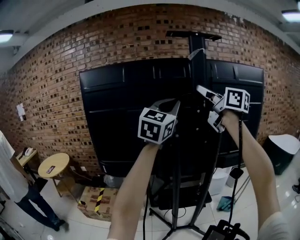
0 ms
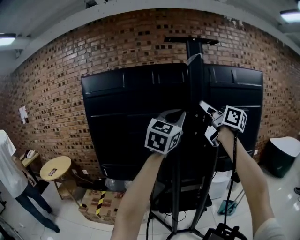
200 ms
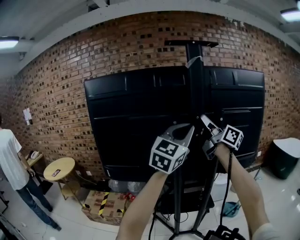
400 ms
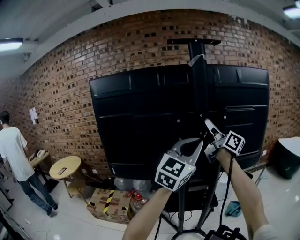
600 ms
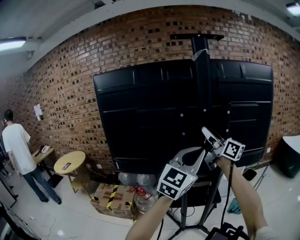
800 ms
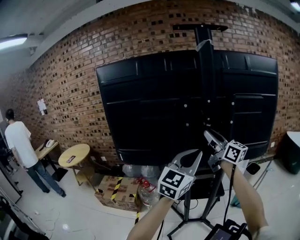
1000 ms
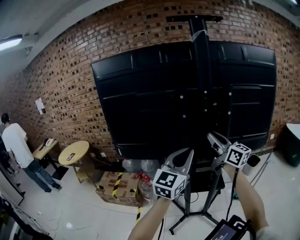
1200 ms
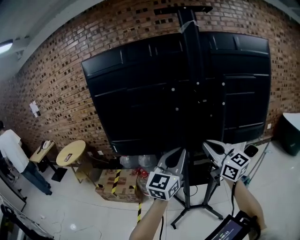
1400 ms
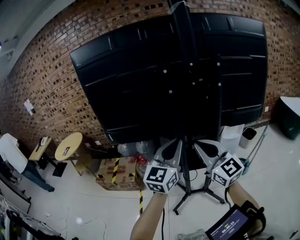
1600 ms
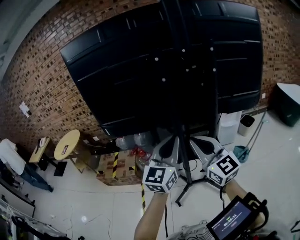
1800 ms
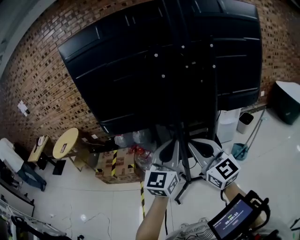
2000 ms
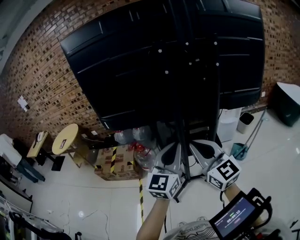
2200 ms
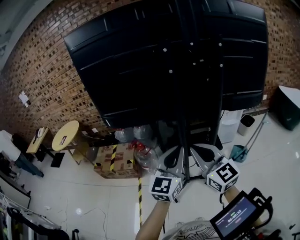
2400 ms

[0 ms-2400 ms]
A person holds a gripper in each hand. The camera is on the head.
0 ms to 1200 ms: The right gripper heads downward, covering approximately 25 cm, while the left gripper goes approximately 25 cm downward and backward.
1200 ms to 2400 ms: The right gripper travels backward, downward and to the left by roughly 20 cm, and changes its angle by about 30 degrees, while the left gripper heads downward and backward, covering roughly 15 cm.

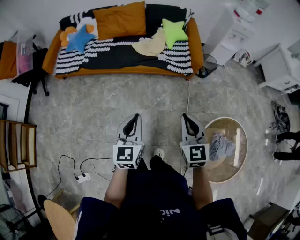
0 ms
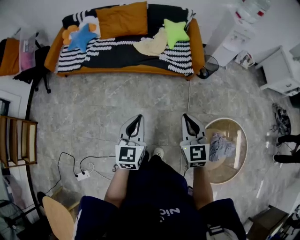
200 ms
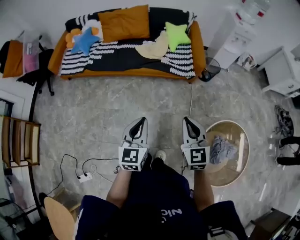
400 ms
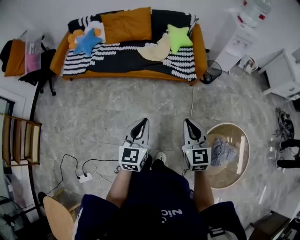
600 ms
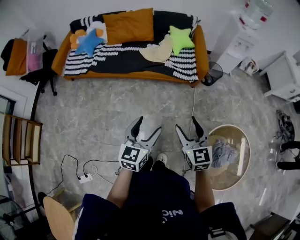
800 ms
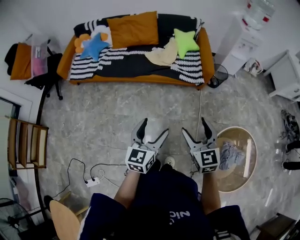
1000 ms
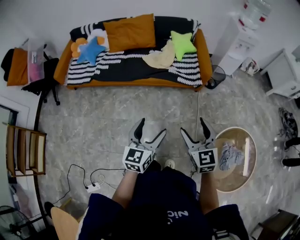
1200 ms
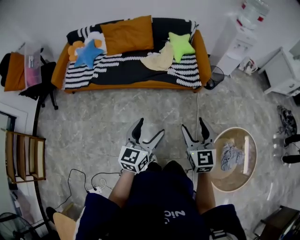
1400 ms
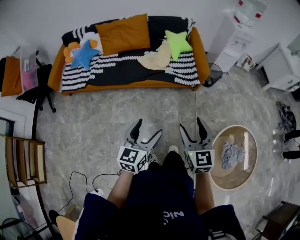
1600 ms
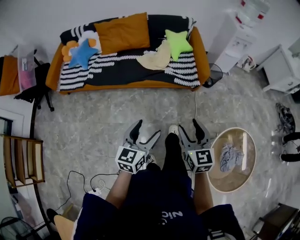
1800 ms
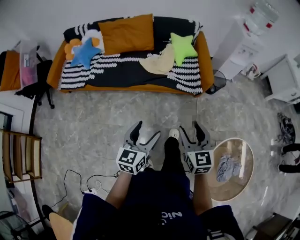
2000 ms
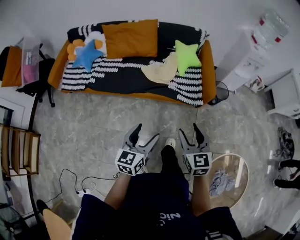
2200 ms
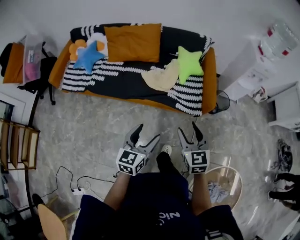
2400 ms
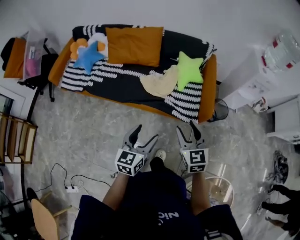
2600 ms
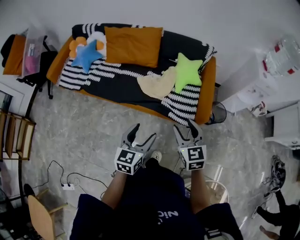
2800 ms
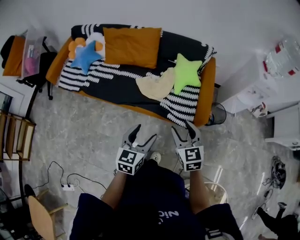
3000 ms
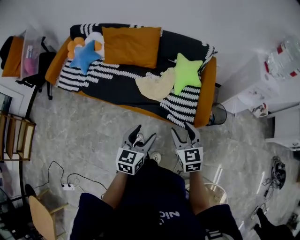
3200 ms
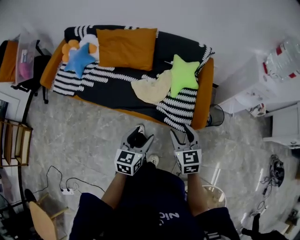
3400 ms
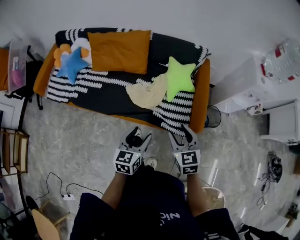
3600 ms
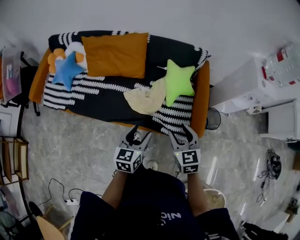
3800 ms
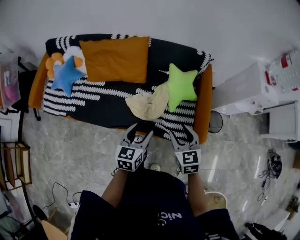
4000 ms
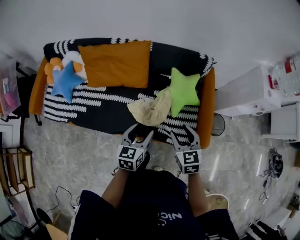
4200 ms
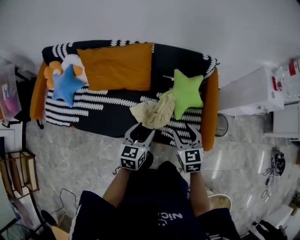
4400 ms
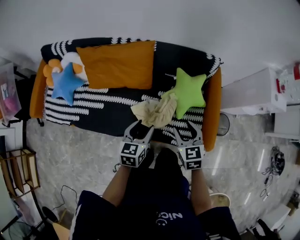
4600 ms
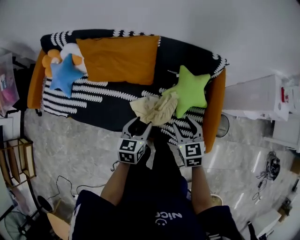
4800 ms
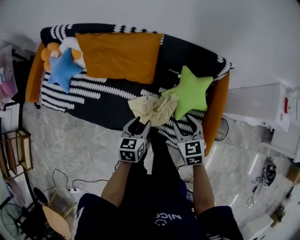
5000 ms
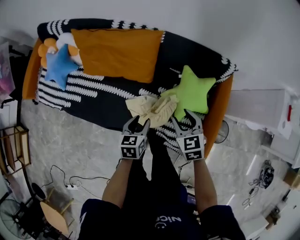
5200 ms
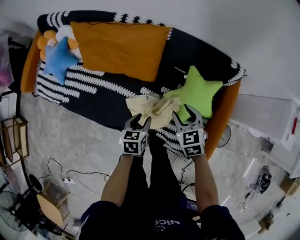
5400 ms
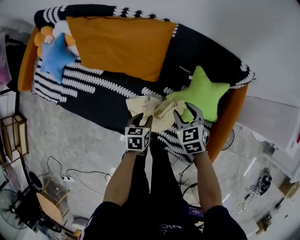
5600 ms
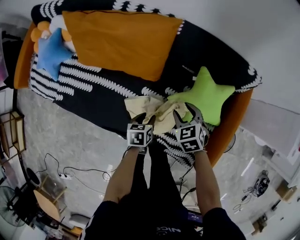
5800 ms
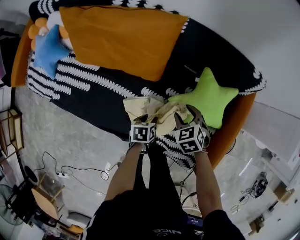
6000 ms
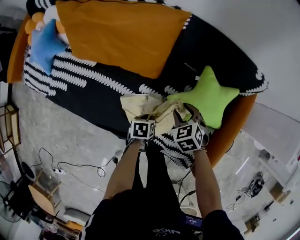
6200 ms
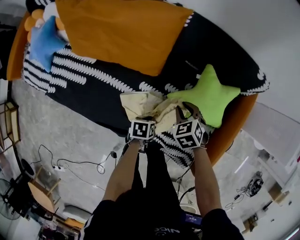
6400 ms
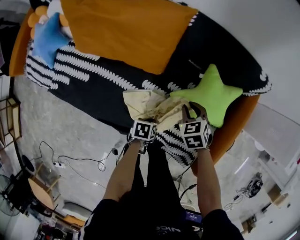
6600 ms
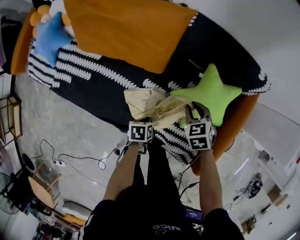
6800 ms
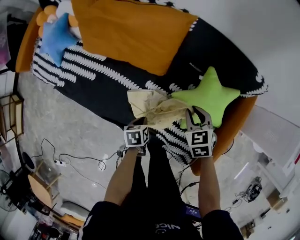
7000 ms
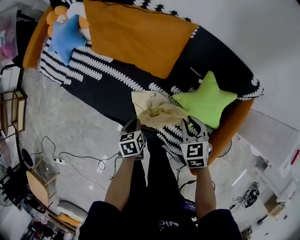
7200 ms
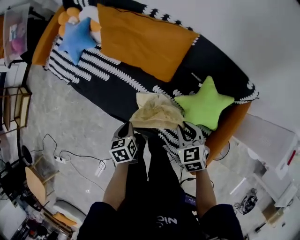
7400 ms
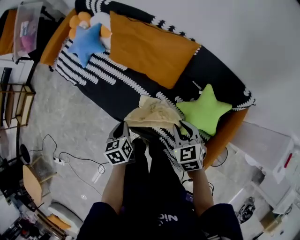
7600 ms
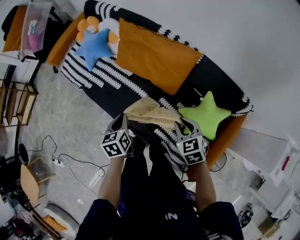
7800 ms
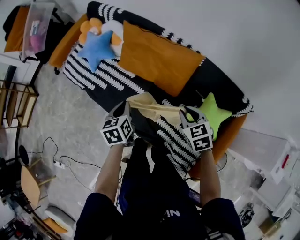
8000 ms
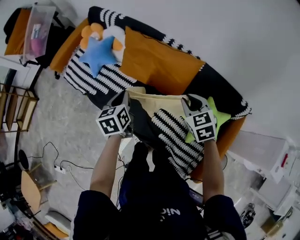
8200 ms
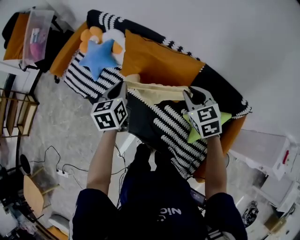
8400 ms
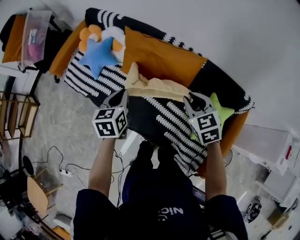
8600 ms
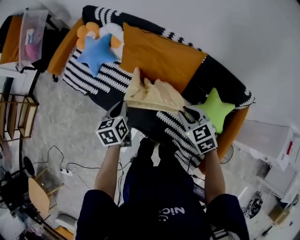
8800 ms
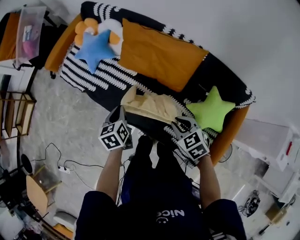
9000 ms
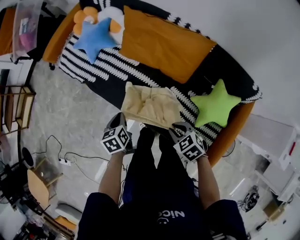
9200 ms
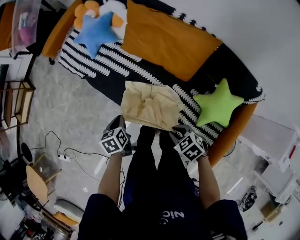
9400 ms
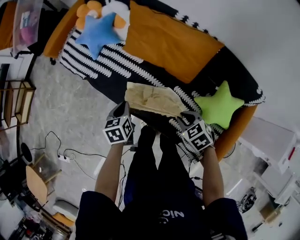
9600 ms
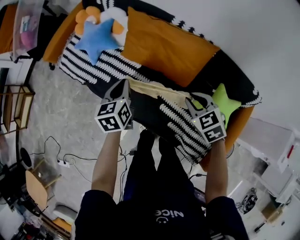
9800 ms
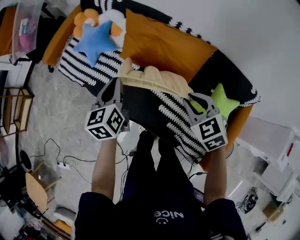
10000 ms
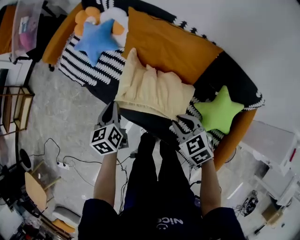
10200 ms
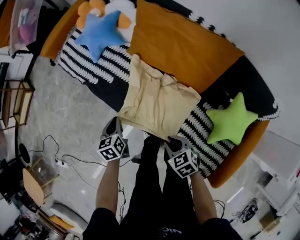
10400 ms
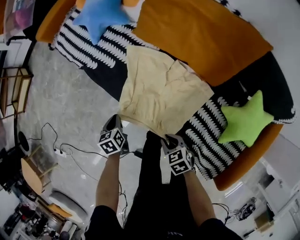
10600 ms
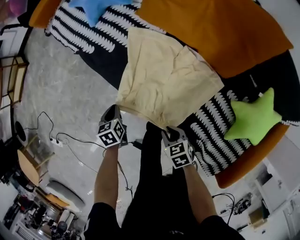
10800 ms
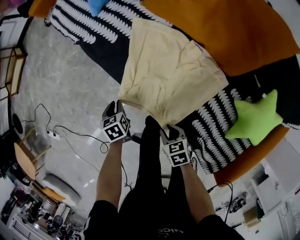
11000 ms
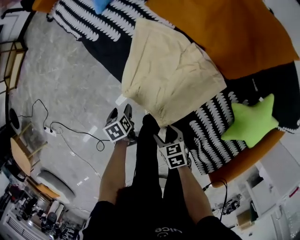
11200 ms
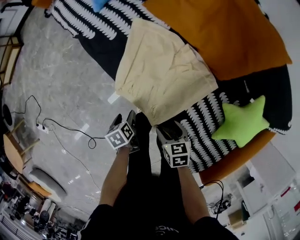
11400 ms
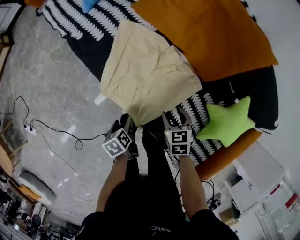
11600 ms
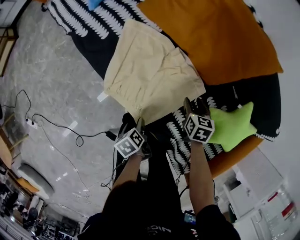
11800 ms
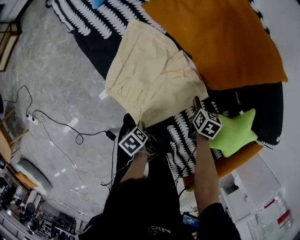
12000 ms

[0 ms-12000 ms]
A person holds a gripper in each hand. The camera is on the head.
0 ms to 1600 ms: The left gripper opens. Meanwhile the right gripper shifts by about 5 cm, and opens up.
1600 ms to 3000 ms: The left gripper moves forward and to the right, about 30 cm. Meanwhile the right gripper heads forward, covering approximately 35 cm, and swivels approximately 20 degrees.
3000 ms to 4400 ms: Both grippers travel together forward, approximately 30 cm.
4400 ms to 6000 ms: The right gripper shifts roughly 35 cm downward and forward, and swivels roughly 40 degrees. Meanwhile the left gripper travels downward by approximately 35 cm, and points its fingers roughly 30 degrees further downward.
6000 ms to 7600 ms: The grippers both shift upward by some 20 cm. The right gripper closes up, while the left gripper swivels approximately 40 degrees, and closes.
7600 ms to 9000 ms: The left gripper is displaced forward, to the left and upward by about 15 cm, while the right gripper goes some 10 cm to the left, and moves approximately 15 cm forward and comes back.
9000 ms to 10400 ms: The left gripper goes up and down, approximately 25 cm each way, reversing 2 times. Meanwhile the right gripper goes up and down, about 25 cm each way, reversing 2 times.
10400 ms to 12000 ms: The right gripper swings up and down, approximately 20 cm each way, with 2 reversals, changes its angle by about 40 degrees, and opens, while the left gripper moves about 30 cm, tilts its fingers approximately 40 degrees downward, and opens its fingers.

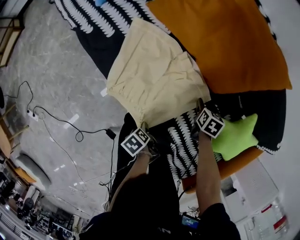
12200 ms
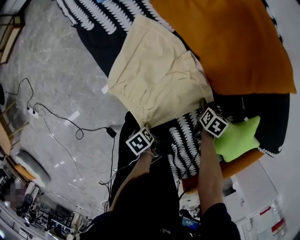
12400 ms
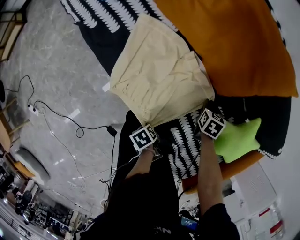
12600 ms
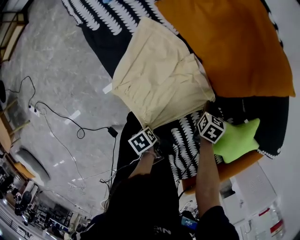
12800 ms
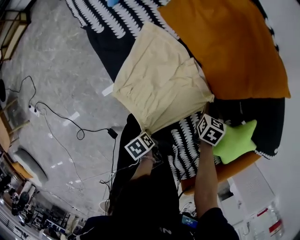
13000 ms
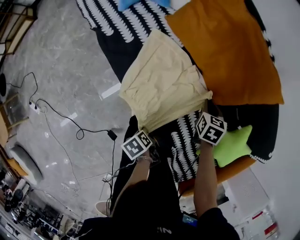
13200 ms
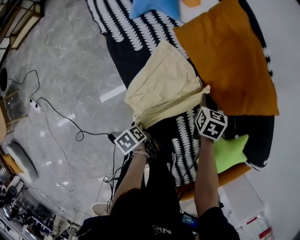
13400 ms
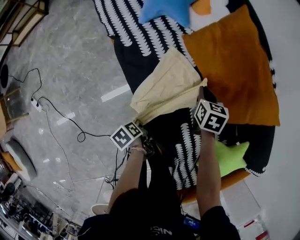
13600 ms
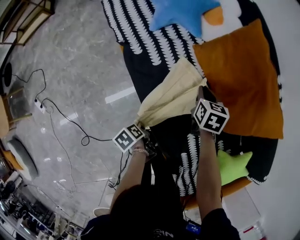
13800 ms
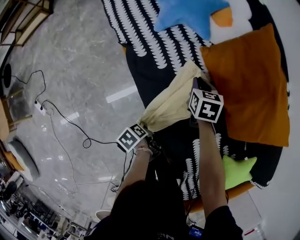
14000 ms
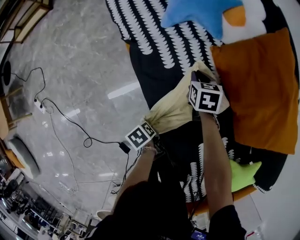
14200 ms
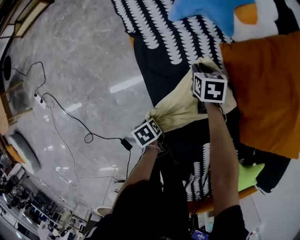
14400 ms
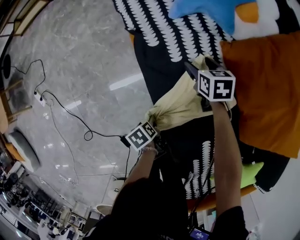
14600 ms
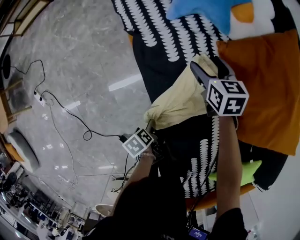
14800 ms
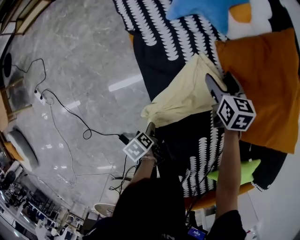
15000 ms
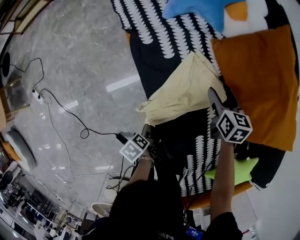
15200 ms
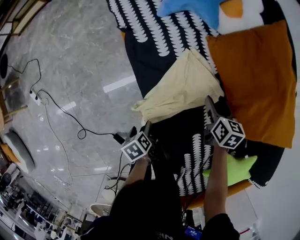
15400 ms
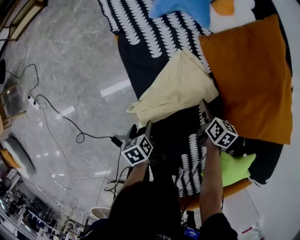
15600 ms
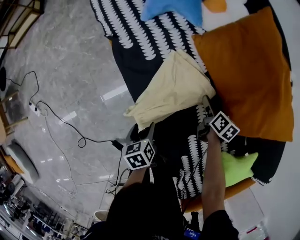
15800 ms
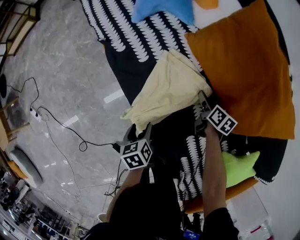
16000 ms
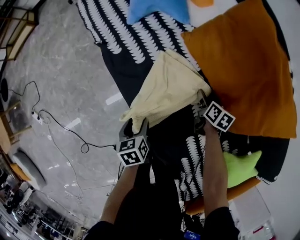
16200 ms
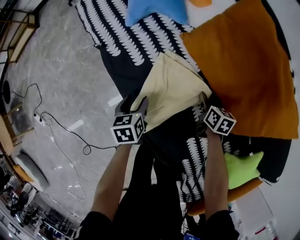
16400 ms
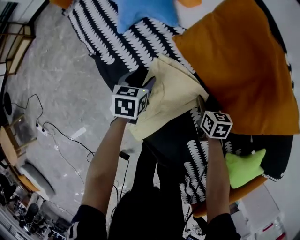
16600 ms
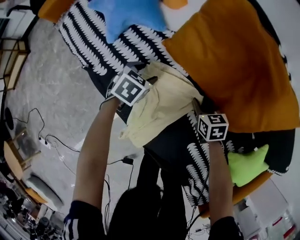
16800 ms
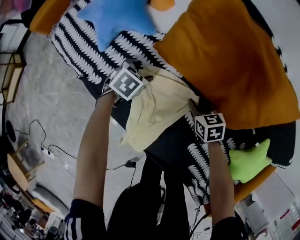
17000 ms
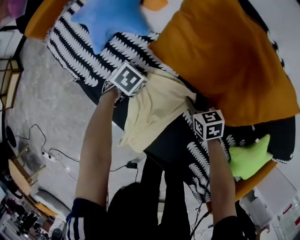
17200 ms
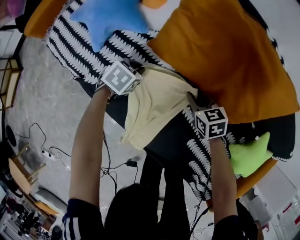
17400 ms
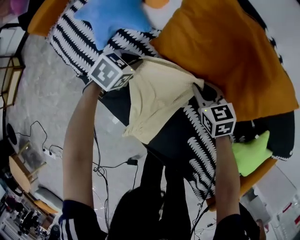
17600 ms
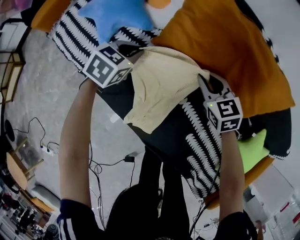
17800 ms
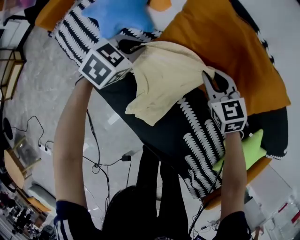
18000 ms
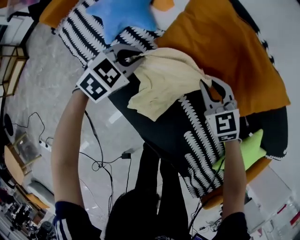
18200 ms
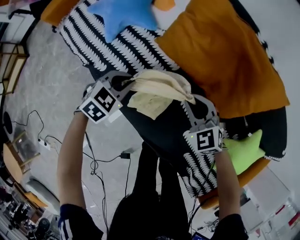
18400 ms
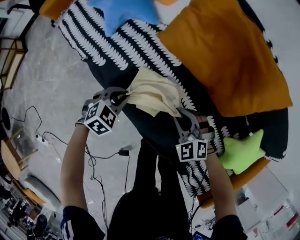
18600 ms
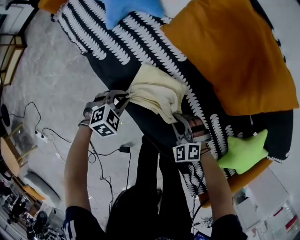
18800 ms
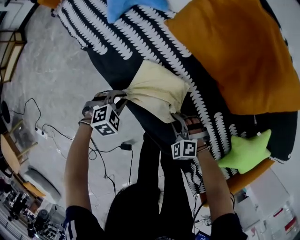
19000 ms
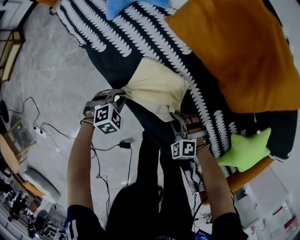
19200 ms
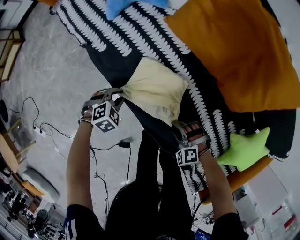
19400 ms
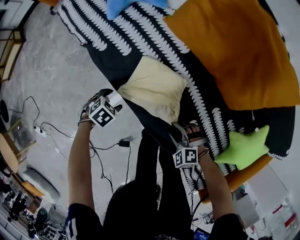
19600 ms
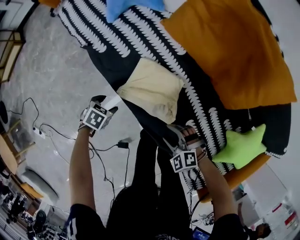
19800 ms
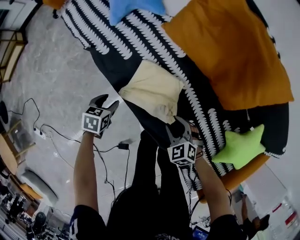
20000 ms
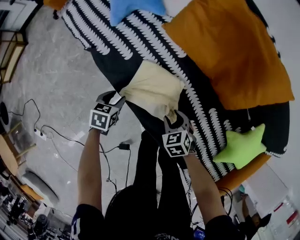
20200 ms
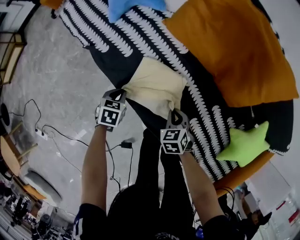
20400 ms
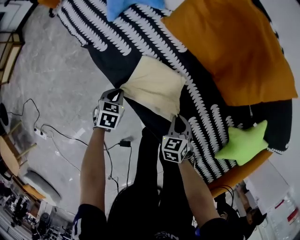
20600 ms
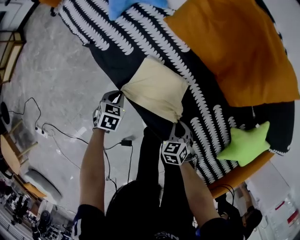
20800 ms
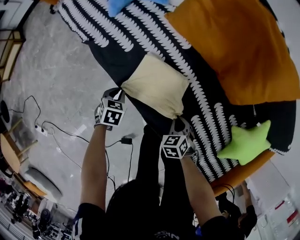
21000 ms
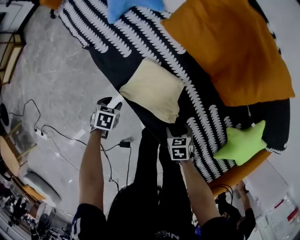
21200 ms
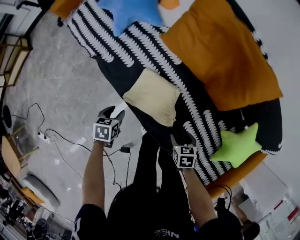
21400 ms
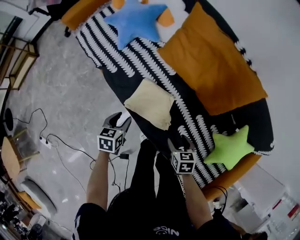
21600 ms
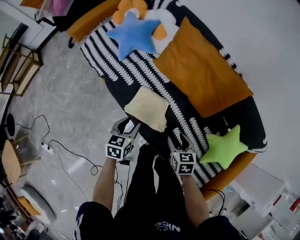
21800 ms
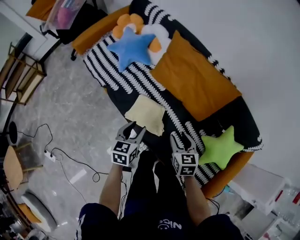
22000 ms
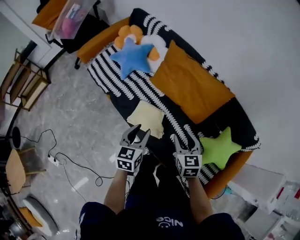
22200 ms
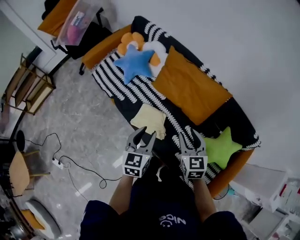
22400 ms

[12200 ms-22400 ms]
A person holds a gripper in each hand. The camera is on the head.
12200 ms to 13600 ms: The right gripper changes place by roughly 30 cm, swivels about 30 degrees, and closes. Meanwhile the left gripper ends up some 20 cm from where it was, and closes.
13600 ms to 15200 ms: The left gripper moves downward, approximately 5 cm, and opens up; the right gripper reaches approximately 15 cm downward, then returns, and opens.
15200 ms to 16600 ms: The left gripper ends up about 35 cm from where it was, and rolls clockwise, seen from behind, by some 80 degrees. Meanwhile the right gripper moves downward, some 10 cm, and closes its fingers.
16600 ms to 18000 ms: The two grippers go some 20 cm upward and forward. The left gripper rotates around the line of its fingers by some 40 degrees, clockwise from behind, and closes; the right gripper rotates about 40 degrees.
18000 ms to 19400 ms: Both grippers move backward and downward, roughly 35 cm. The left gripper changes its angle by some 30 degrees. Meanwhile the right gripper twists some 50 degrees counterclockwise, seen from behind.
19400 ms to 21000 ms: The right gripper reaches about 5 cm upward, then returns, rotates around the line of its fingers by some 60 degrees, clockwise from behind, and opens, then closes once more; the left gripper turns by approximately 40 degrees, and opens, then closes again.
21000 ms to 22400 ms: Both grippers travel together upward, approximately 50 cm. The left gripper tilts its fingers about 50 degrees upward, while the right gripper tilts its fingers approximately 40 degrees upward, and opens up.
